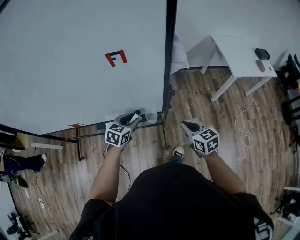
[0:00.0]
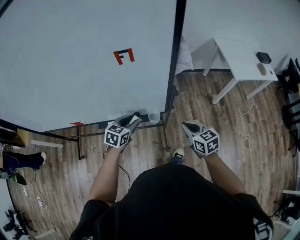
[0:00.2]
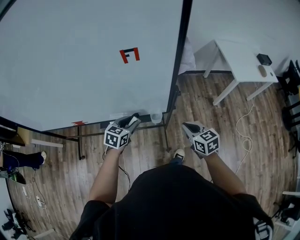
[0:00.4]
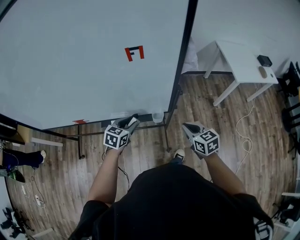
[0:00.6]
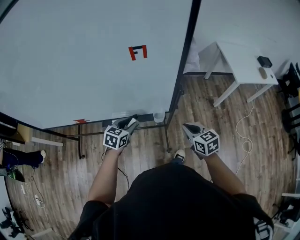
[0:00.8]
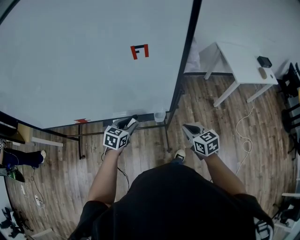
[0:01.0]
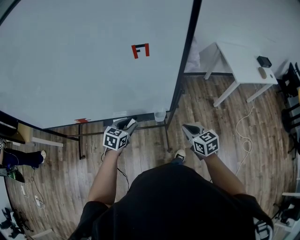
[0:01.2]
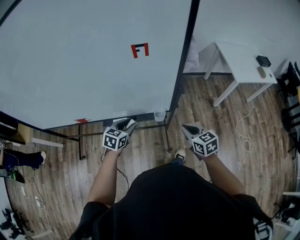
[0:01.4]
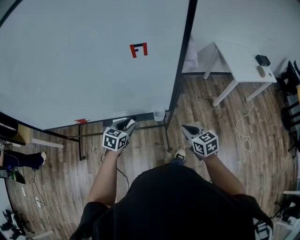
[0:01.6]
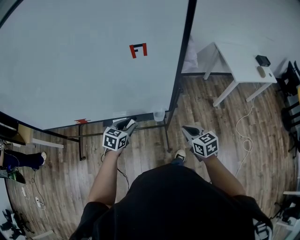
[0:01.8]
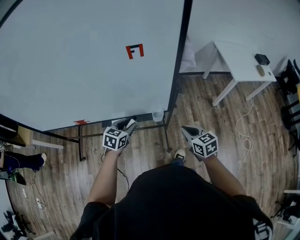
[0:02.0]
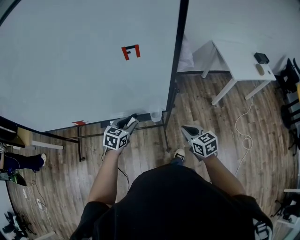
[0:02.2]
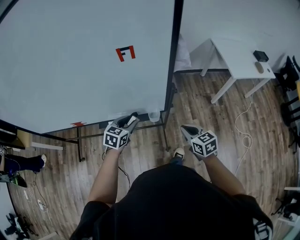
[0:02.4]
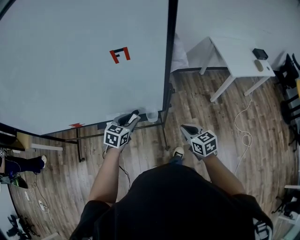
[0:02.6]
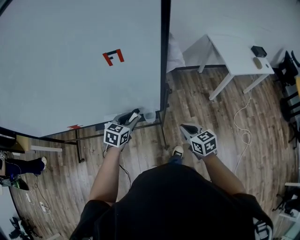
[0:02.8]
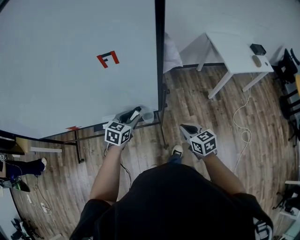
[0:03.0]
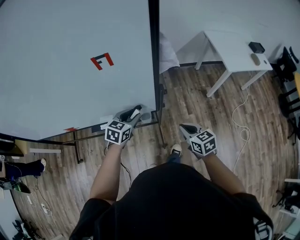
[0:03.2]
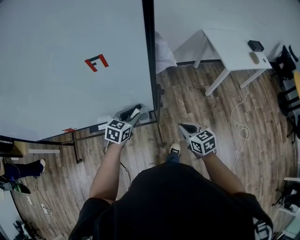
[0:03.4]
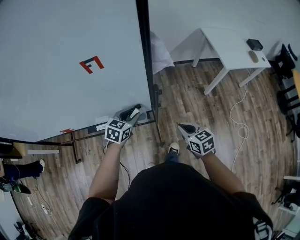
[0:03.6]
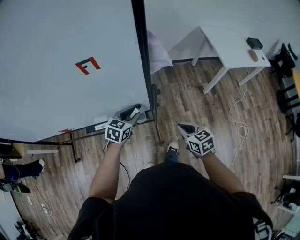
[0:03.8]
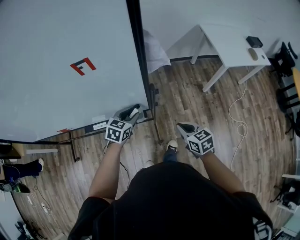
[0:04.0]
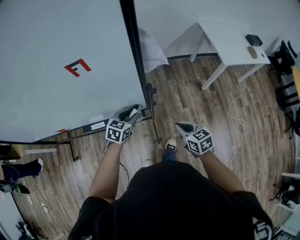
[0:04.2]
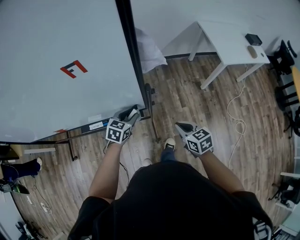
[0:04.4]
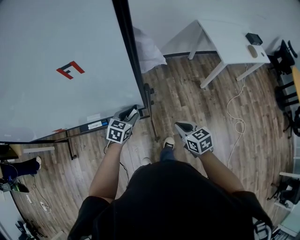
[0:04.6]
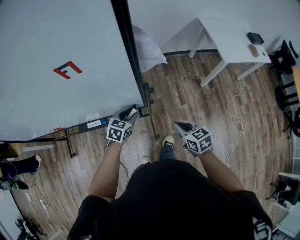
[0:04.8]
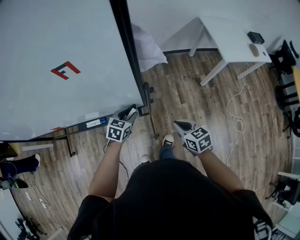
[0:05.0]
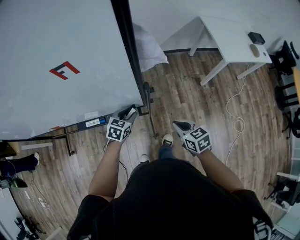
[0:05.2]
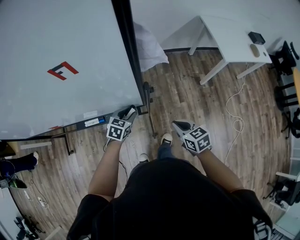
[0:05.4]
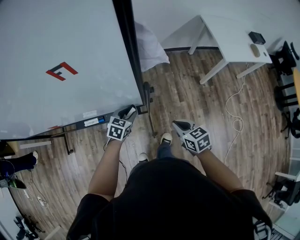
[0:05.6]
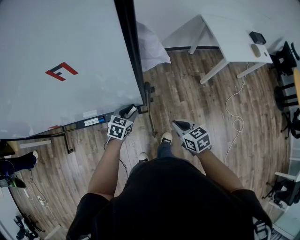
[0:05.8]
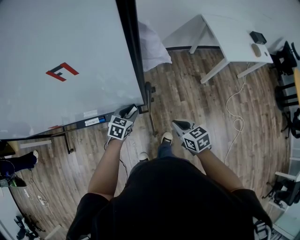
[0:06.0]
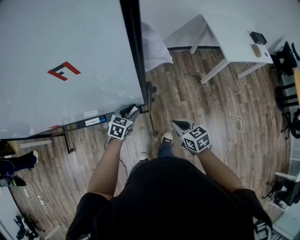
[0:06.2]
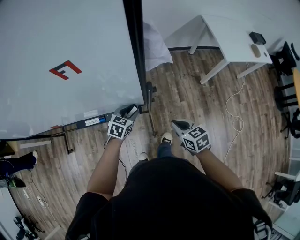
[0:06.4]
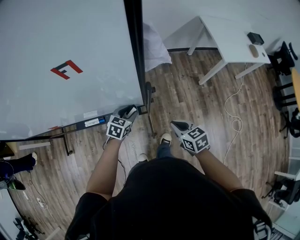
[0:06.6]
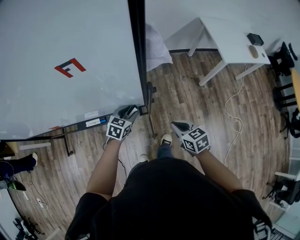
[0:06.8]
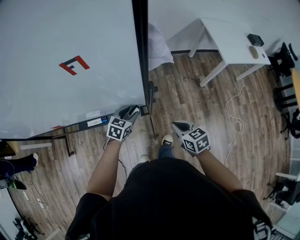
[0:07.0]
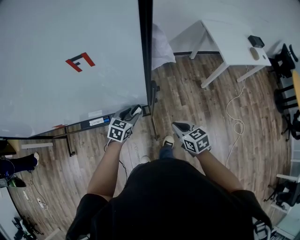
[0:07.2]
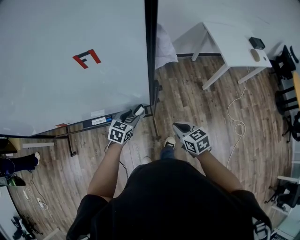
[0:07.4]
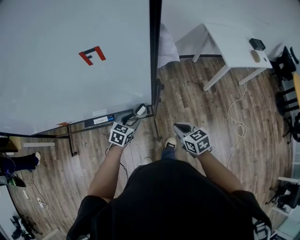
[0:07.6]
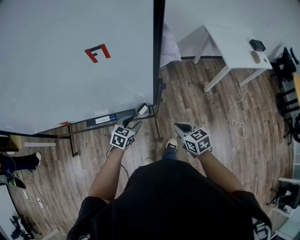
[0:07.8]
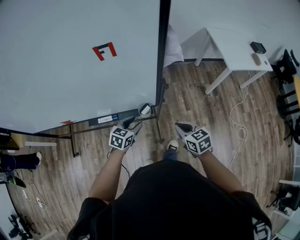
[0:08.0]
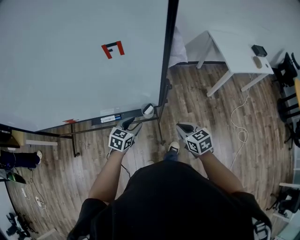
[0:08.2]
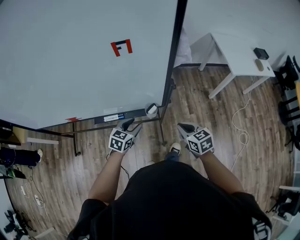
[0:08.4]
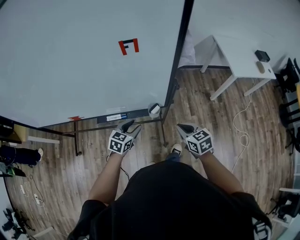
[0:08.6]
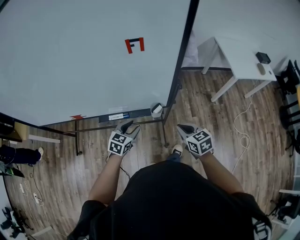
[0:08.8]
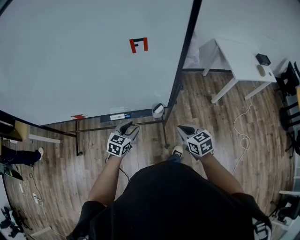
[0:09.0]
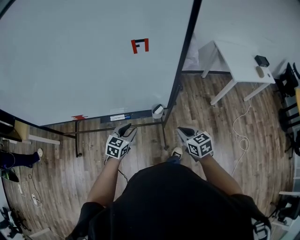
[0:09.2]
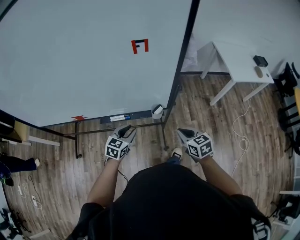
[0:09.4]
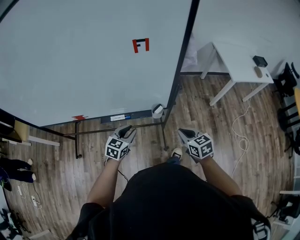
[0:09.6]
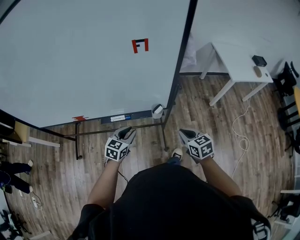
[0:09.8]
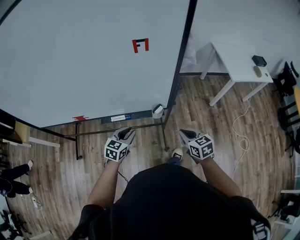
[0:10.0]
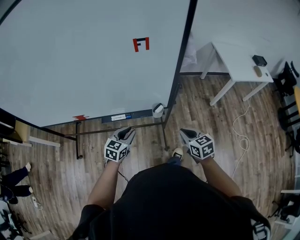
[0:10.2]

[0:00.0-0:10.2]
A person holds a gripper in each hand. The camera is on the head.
0:00.0 to 0:01.4: The right gripper shifts by some 5 cm; the left gripper heads to the left, covering about 5 cm.
0:01.4 to 0:03.0: The right gripper heads to the right, covering approximately 5 cm, while the left gripper shifts approximately 10 cm to the right and forward.
0:03.0 to 0:04.4: The left gripper is displaced downward and to the right by about 10 cm. Meanwhile the right gripper moves some 5 cm.
0:04.4 to 0:05.8: The left gripper shifts about 5 cm downward.
0:05.8 to 0:07.2: The grippers make only small movements.
0:07.2 to 0:08.8: The right gripper goes some 10 cm to the left, while the left gripper shifts some 15 cm to the left and backward.
0:08.8 to 0:10.2: The left gripper ends up roughly 5 cm from where it was.

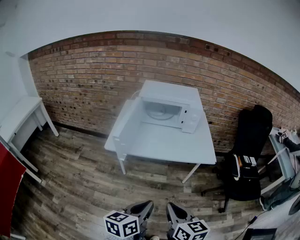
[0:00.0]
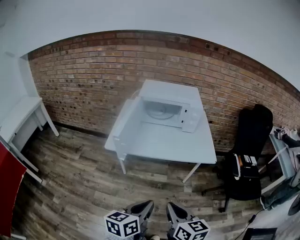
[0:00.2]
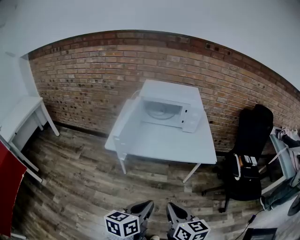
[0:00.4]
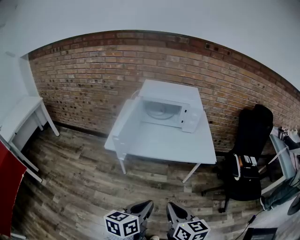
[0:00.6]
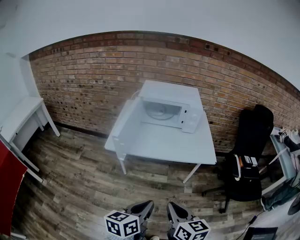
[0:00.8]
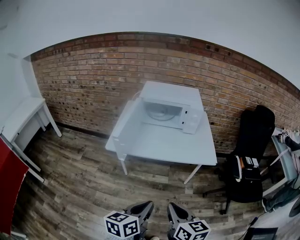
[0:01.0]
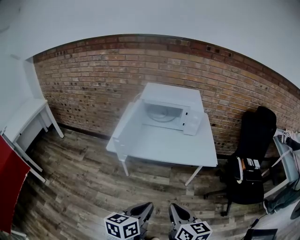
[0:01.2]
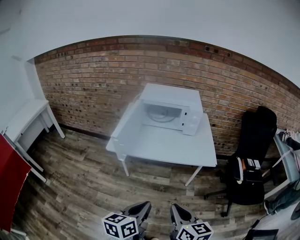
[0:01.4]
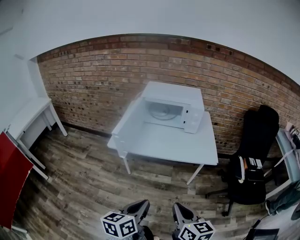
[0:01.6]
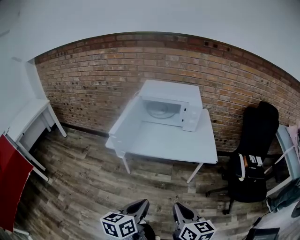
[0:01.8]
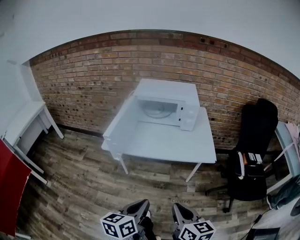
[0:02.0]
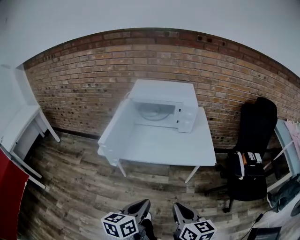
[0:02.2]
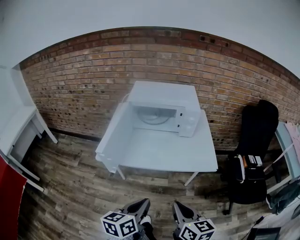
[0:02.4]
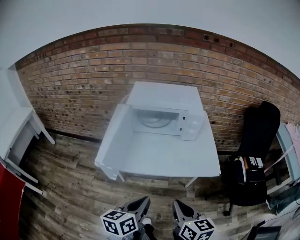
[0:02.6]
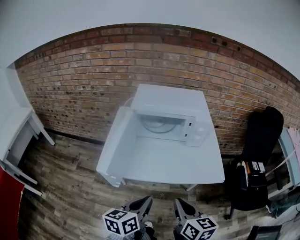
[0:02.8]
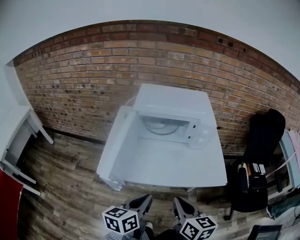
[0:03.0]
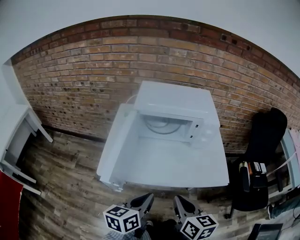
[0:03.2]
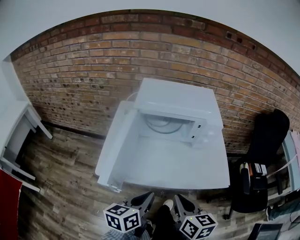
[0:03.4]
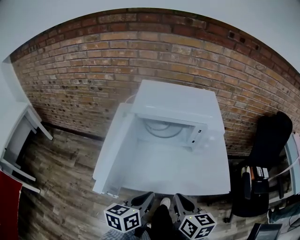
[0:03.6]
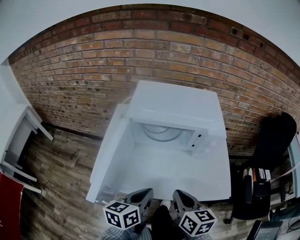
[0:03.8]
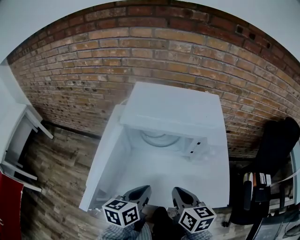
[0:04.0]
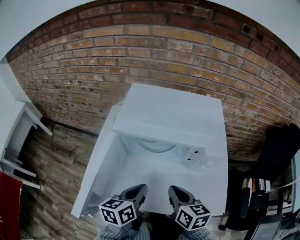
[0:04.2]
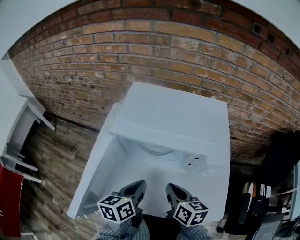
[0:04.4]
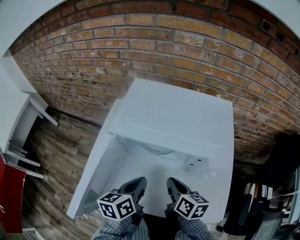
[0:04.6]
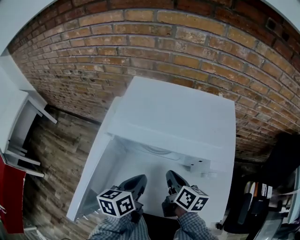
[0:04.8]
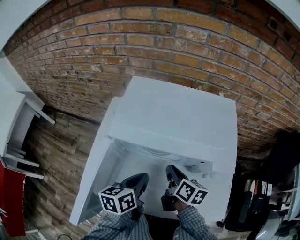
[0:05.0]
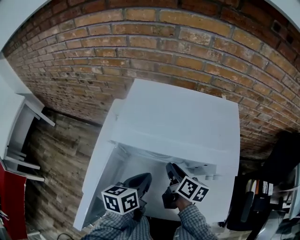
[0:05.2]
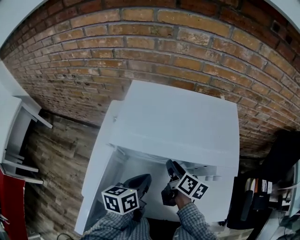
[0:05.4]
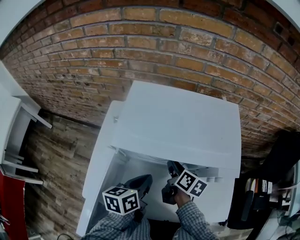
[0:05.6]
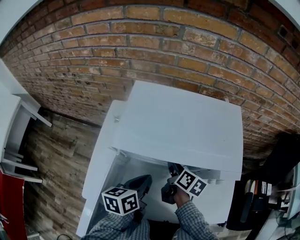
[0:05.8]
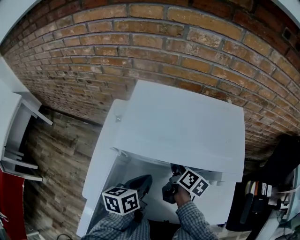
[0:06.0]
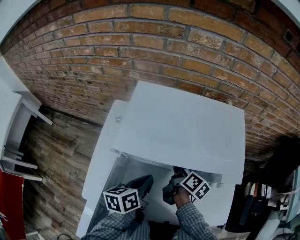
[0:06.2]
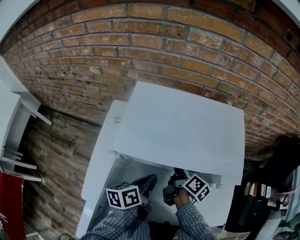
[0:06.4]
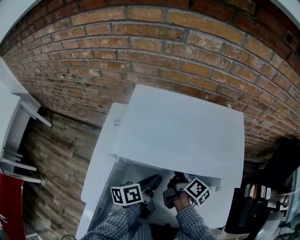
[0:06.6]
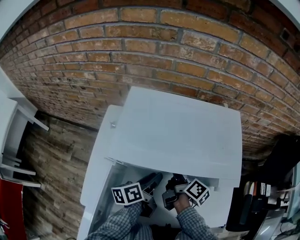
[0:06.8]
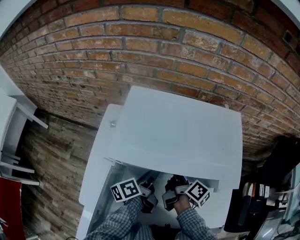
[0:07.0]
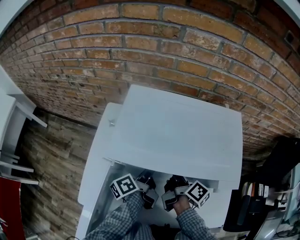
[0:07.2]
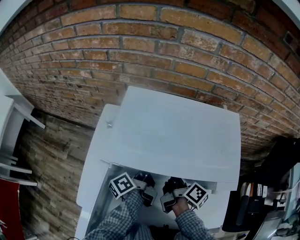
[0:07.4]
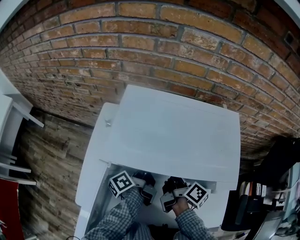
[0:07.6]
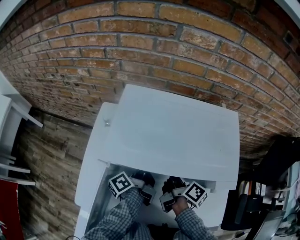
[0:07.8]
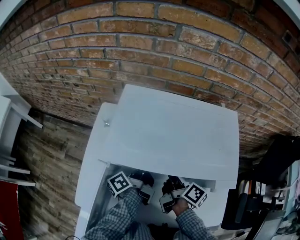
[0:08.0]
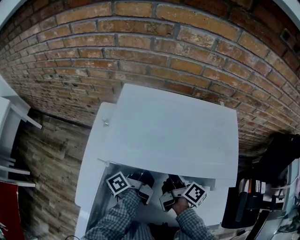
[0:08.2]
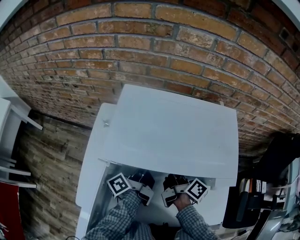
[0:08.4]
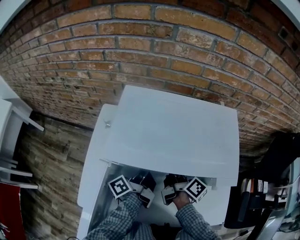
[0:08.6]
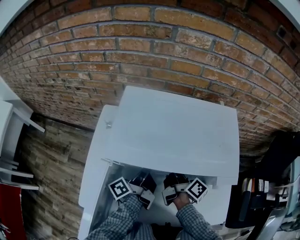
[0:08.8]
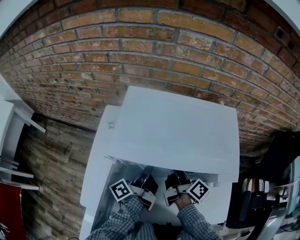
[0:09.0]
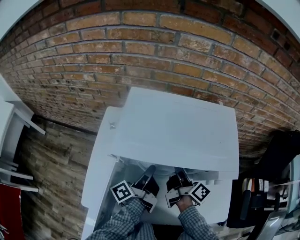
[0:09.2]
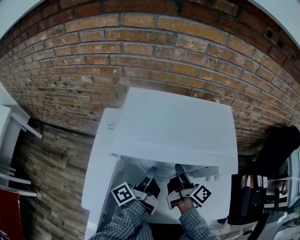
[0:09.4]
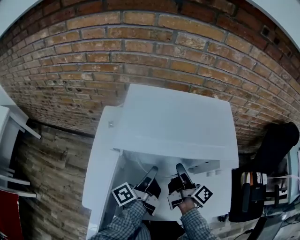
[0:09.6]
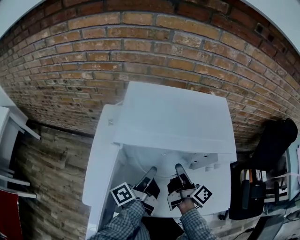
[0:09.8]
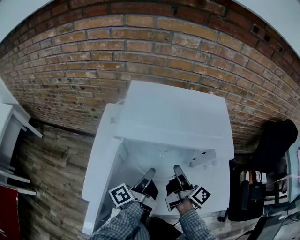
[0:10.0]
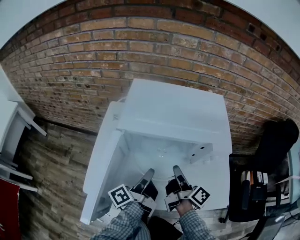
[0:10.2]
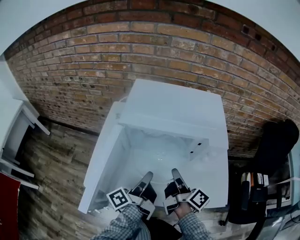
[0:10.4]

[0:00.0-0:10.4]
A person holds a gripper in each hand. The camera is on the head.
0:00.0 to 0:01.4: The right gripper travels to the right by roughly 5 cm.
0:01.4 to 0:03.0: Both grippers move forward, approximately 25 cm.
0:03.0 to 0:04.4: Both grippers move forward, roughly 30 cm.
0:04.4 to 0:06.0: The right gripper moves forward and downward, approximately 20 cm, swivels some 30 degrees, and opens. The left gripper goes roughly 10 cm forward.
0:06.0 to 0:07.4: The left gripper is displaced forward by some 10 cm, rotates some 50 degrees, and opens; the right gripper rotates some 20 degrees.
0:07.4 to 0:09.0: The left gripper closes up.
0:09.0 to 0:10.4: The two grippers go about 15 cm backward.

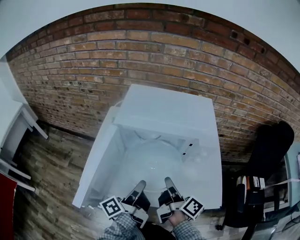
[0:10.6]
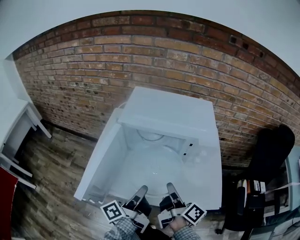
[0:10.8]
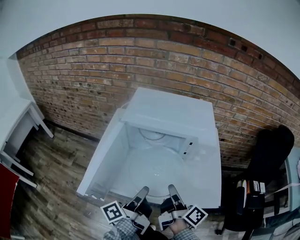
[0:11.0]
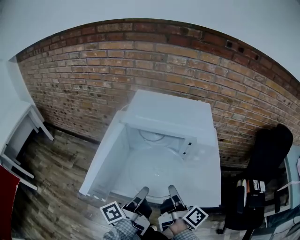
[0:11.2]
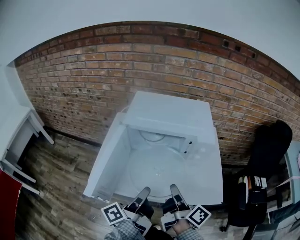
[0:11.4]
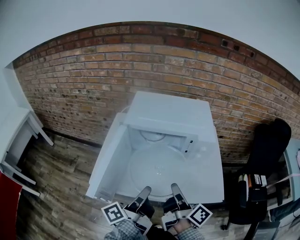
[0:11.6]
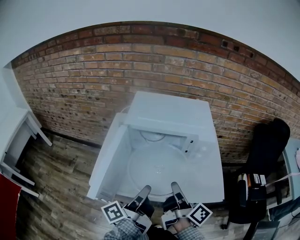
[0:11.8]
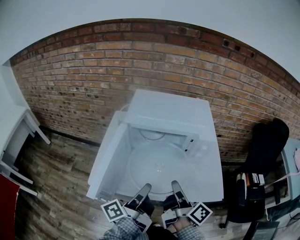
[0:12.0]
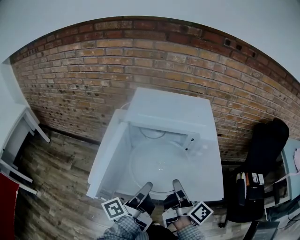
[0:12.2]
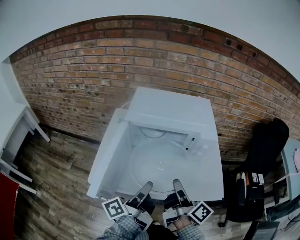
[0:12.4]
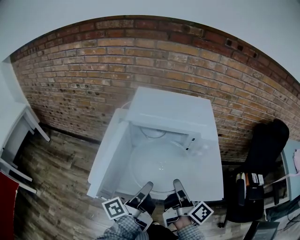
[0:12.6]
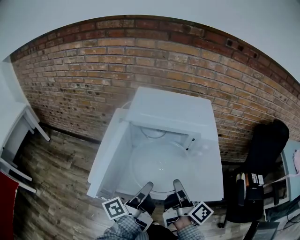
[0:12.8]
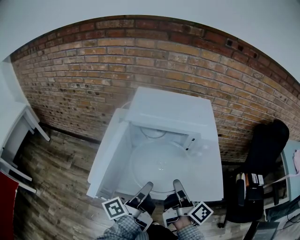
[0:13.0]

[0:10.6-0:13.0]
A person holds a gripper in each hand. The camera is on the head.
0:10.6 to 0:11.8: The grippers both shift backward and upward by roughly 10 cm.
0:11.8 to 0:13.0: Both grippers stay about where they are.

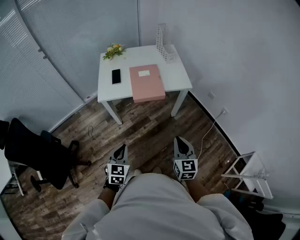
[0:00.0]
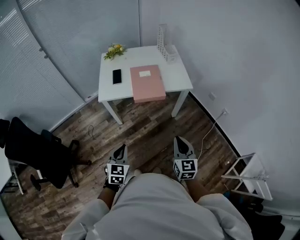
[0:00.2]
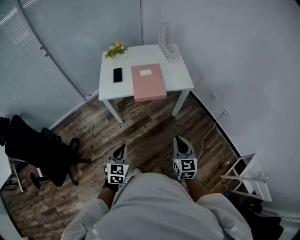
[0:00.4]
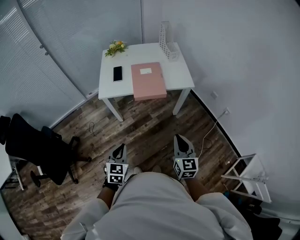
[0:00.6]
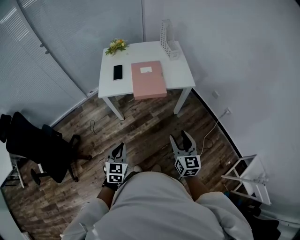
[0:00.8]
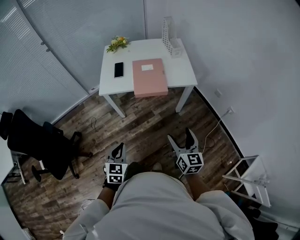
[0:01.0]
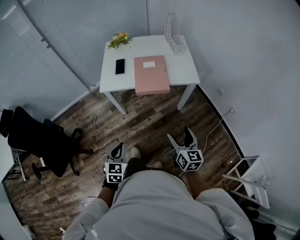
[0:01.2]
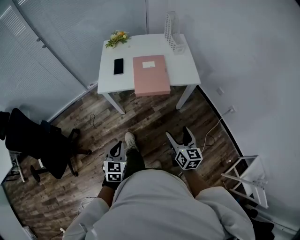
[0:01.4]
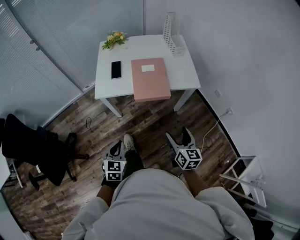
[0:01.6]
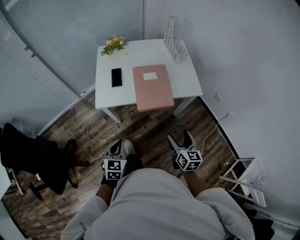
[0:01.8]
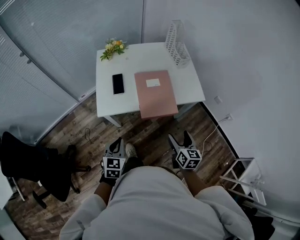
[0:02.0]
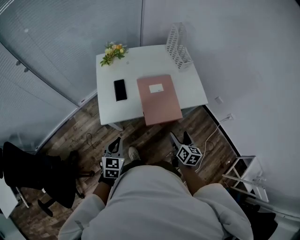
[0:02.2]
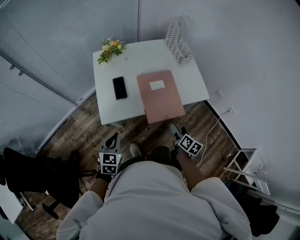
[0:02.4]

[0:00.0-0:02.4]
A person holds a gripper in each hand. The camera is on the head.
0:00.0 to 0:01.2: The right gripper travels forward by about 5 cm, and opens its fingers.
0:01.2 to 0:02.4: The right gripper shifts some 30 cm forward and downward, and rotates about 40 degrees, while the left gripper heads forward and to the left, covering roughly 35 cm.
